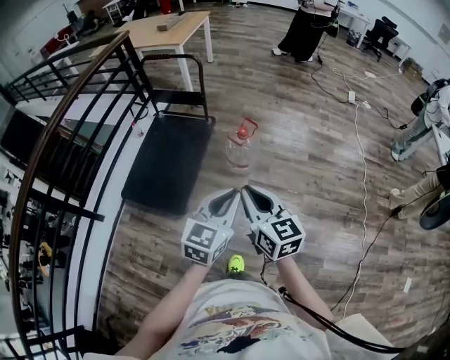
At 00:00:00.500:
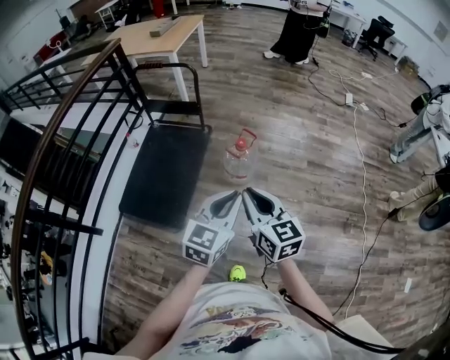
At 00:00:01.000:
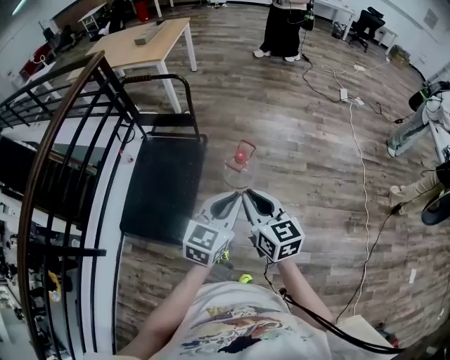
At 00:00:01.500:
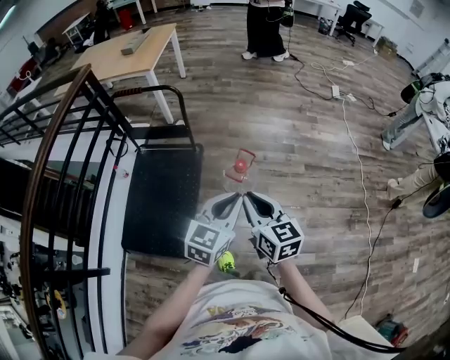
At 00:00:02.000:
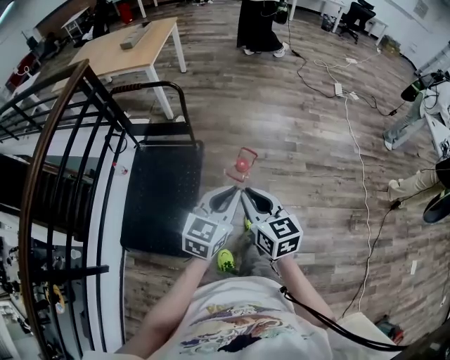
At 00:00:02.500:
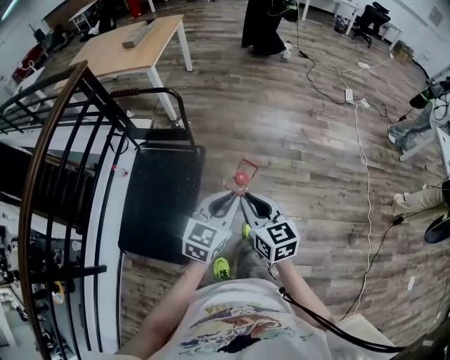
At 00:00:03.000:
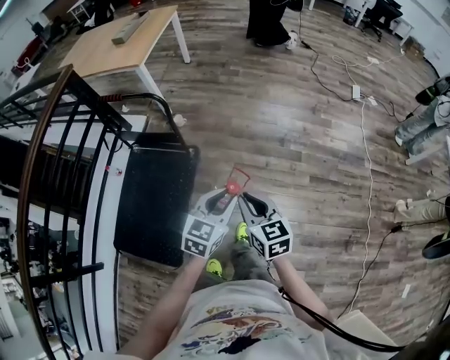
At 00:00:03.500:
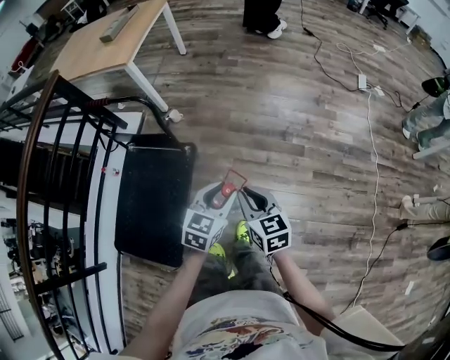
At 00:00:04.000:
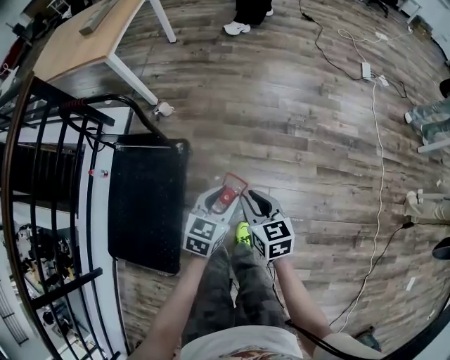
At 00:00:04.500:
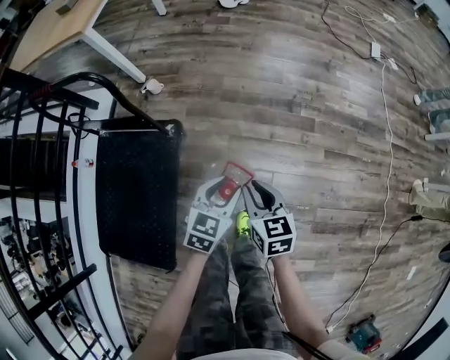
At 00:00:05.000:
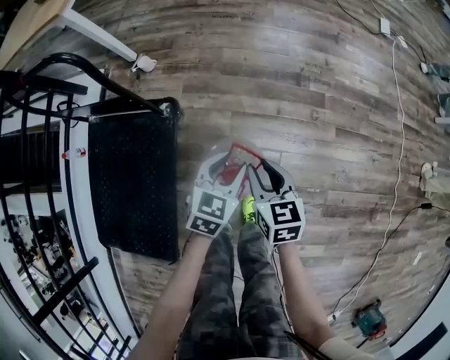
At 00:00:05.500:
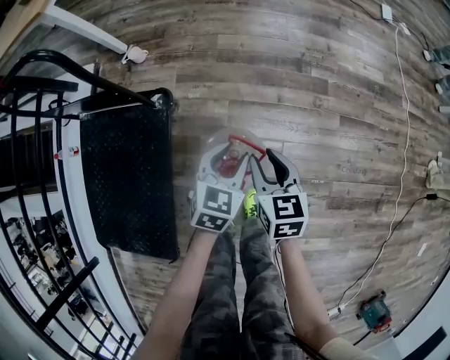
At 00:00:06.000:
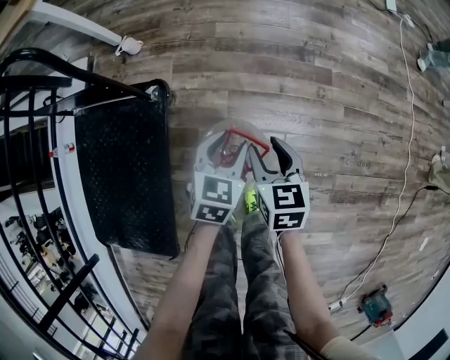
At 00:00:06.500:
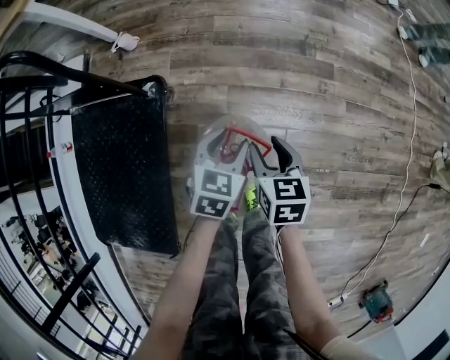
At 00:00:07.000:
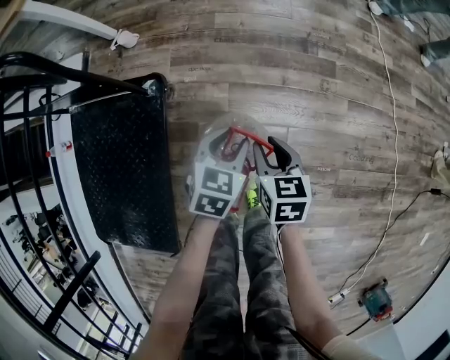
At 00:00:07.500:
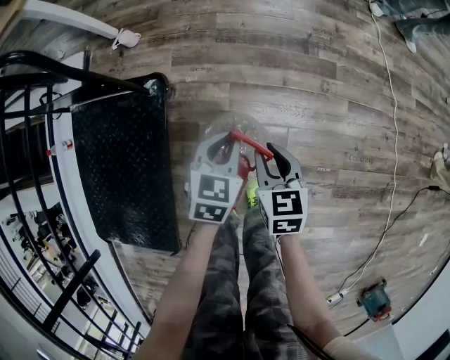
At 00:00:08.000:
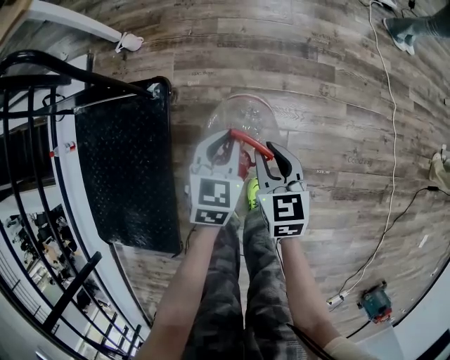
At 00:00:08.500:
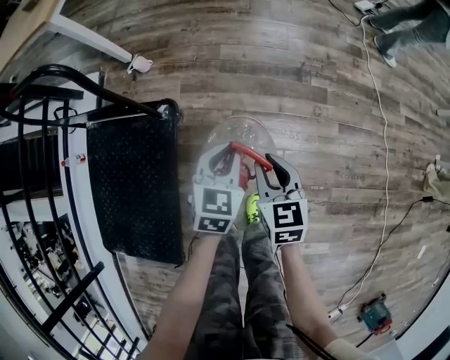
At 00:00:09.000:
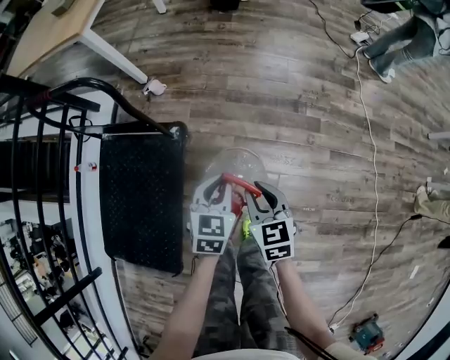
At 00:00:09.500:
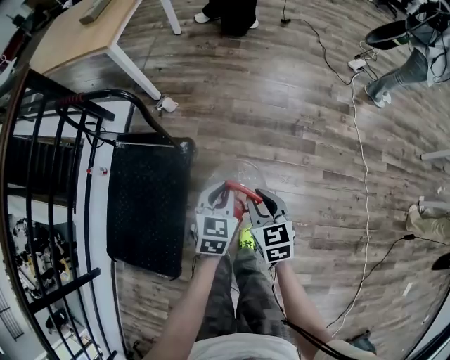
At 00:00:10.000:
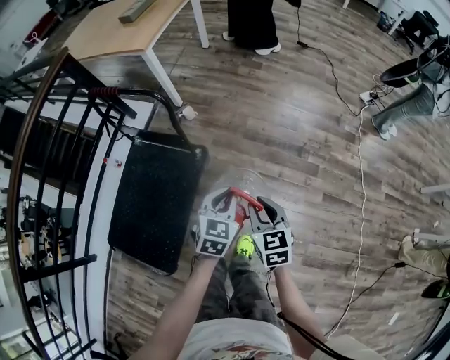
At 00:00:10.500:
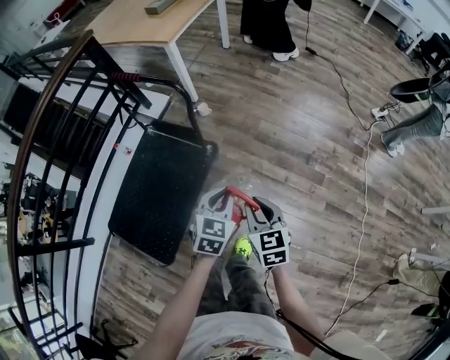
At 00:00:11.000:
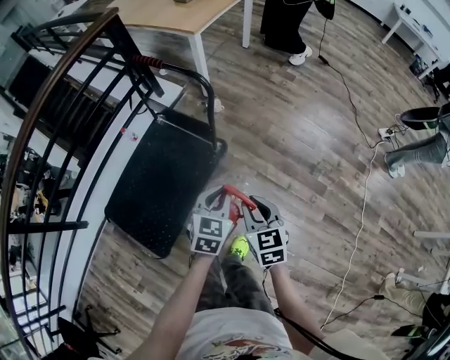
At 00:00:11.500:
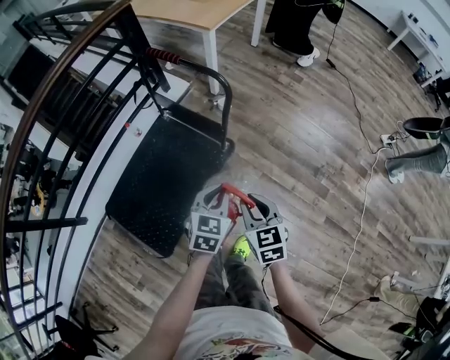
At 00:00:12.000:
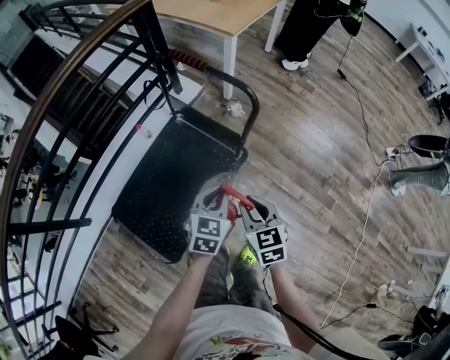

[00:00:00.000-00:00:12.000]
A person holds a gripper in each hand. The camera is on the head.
00:00:00.000 to 00:00:02.000: The grippers both shift forward by some 30 cm.
00:00:02.000 to 00:00:04.000: The two grippers go some 40 cm forward and downward. The left gripper opens up.
00:00:04.000 to 00:00:06.000: Both grippers travel together downward, about 30 cm. The right gripper opens.
00:00:06.000 to 00:00:08.000: The left gripper closes. Meanwhile the right gripper closes.
00:00:08.000 to 00:00:10.000: The two grippers go approximately 30 cm upward.
00:00:10.000 to 00:00:12.000: Both grippers travel together to the left, roughly 30 cm. The left gripper rotates approximately 20 degrees; the right gripper rotates some 20 degrees.

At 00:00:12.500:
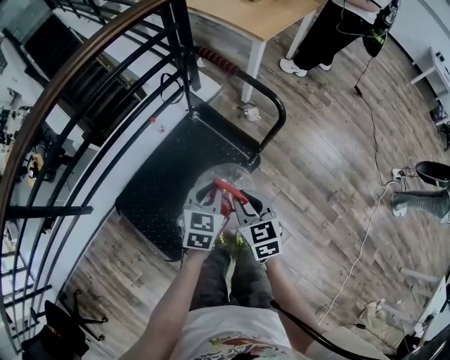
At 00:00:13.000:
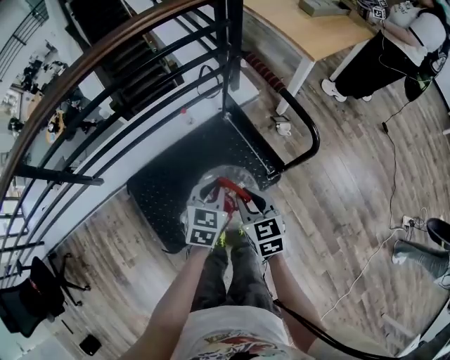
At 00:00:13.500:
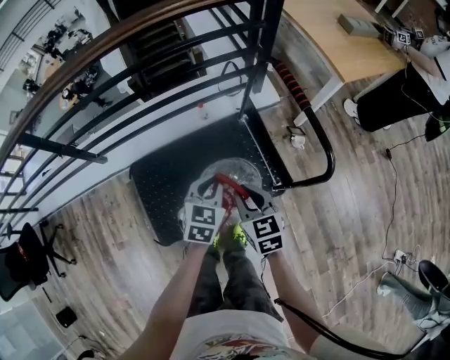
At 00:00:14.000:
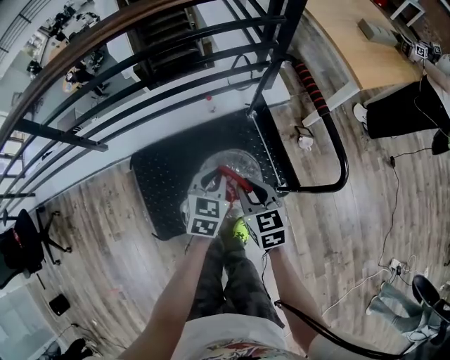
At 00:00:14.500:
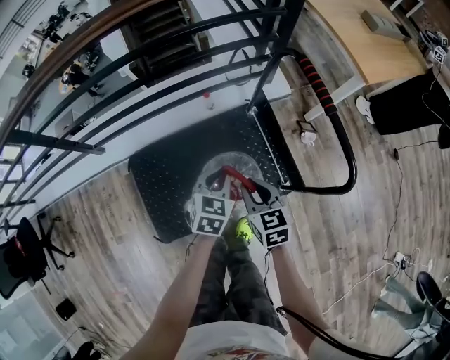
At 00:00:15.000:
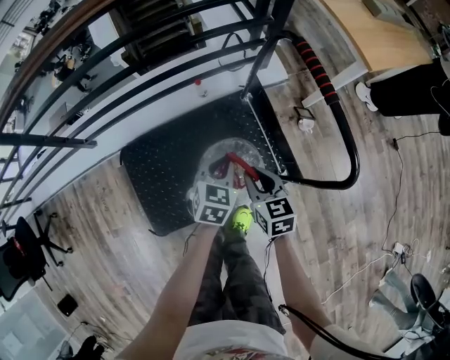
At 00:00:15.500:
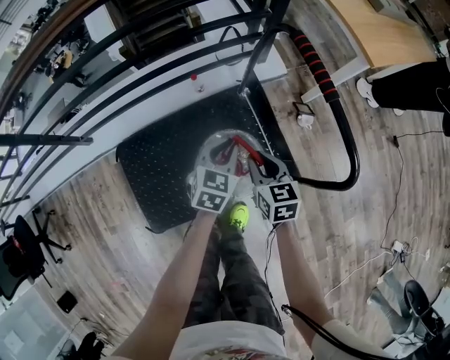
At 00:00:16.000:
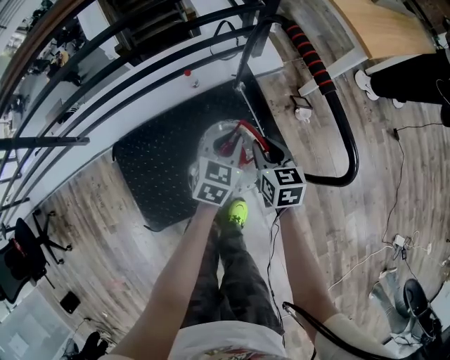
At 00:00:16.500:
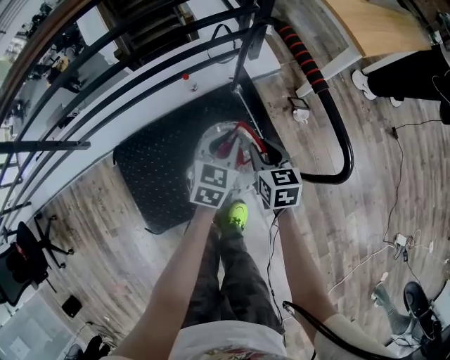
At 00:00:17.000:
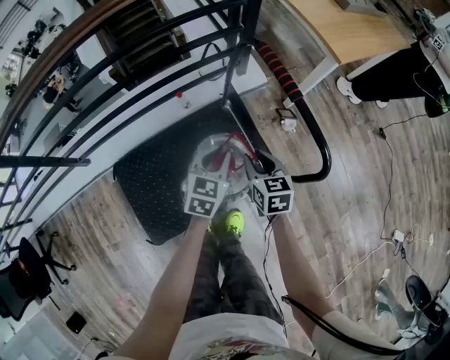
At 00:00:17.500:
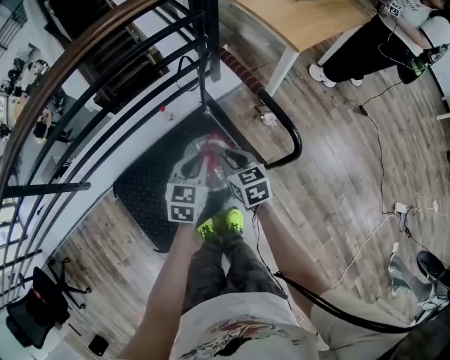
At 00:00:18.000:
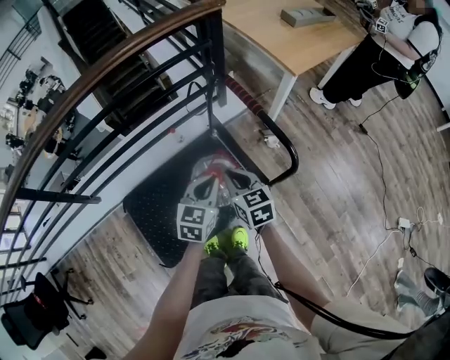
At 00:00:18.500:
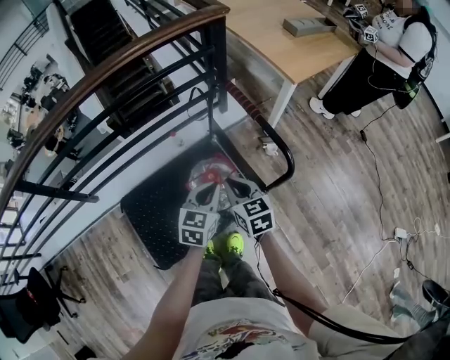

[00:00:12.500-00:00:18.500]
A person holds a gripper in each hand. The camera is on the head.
00:00:12.500 to 00:00:14.500: The left gripper shifts by about 20 cm, and rotates about 30 degrees. The right gripper changes place by roughly 20 cm, and rotates some 30 degrees.
00:00:14.500 to 00:00:16.500: The left gripper moves to the right and forward, roughly 10 cm. The right gripper travels to the right, forward and downward by approximately 15 cm.
00:00:16.500 to 00:00:18.500: The grippers both shift upward and backward by approximately 20 cm.

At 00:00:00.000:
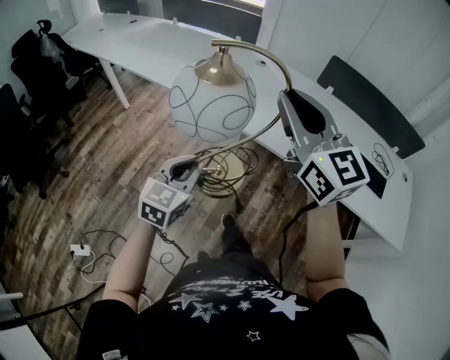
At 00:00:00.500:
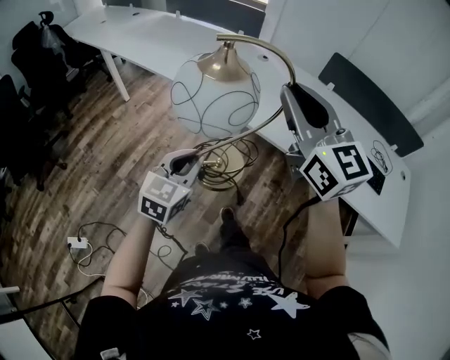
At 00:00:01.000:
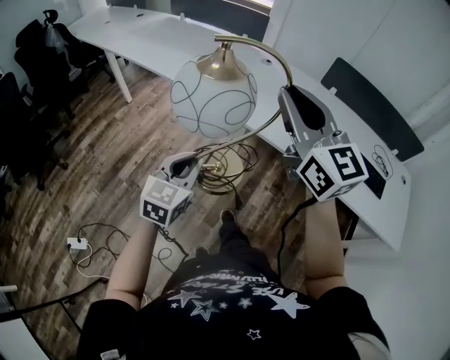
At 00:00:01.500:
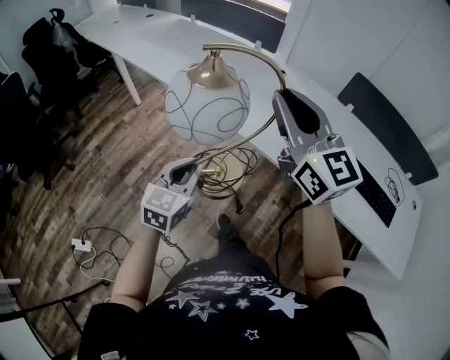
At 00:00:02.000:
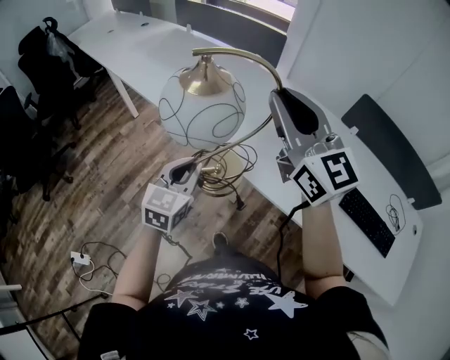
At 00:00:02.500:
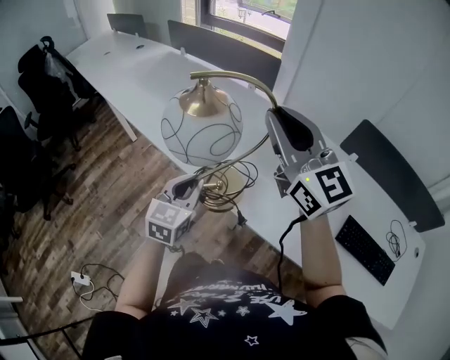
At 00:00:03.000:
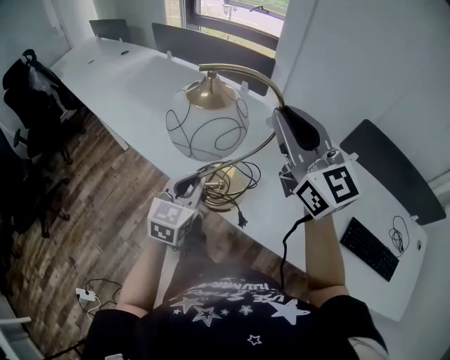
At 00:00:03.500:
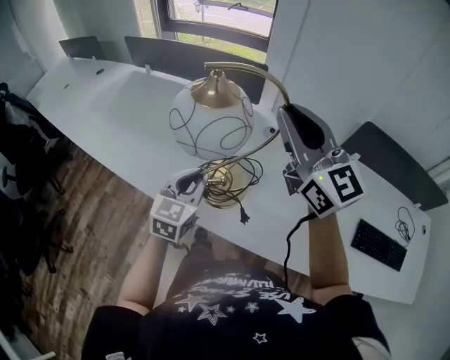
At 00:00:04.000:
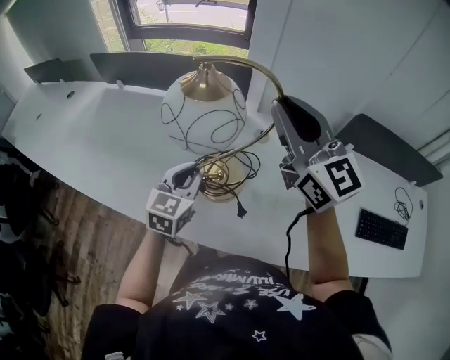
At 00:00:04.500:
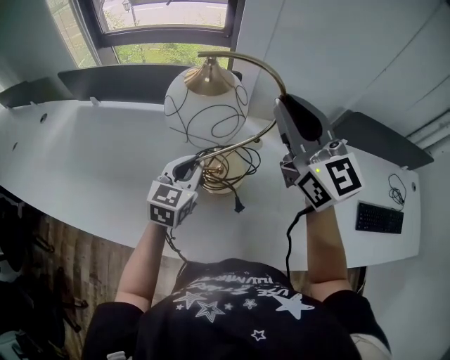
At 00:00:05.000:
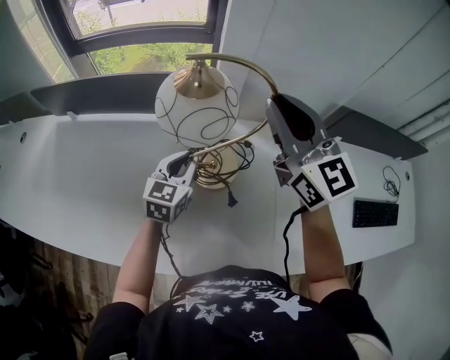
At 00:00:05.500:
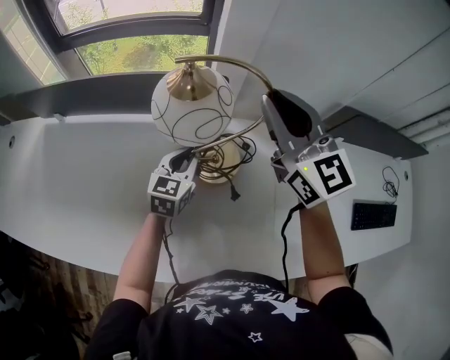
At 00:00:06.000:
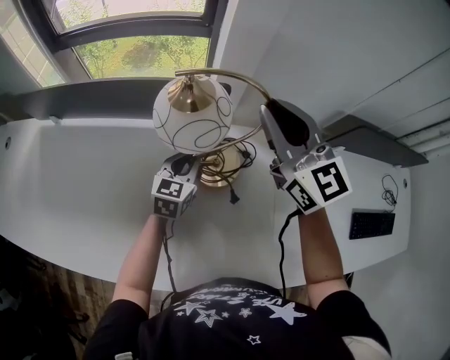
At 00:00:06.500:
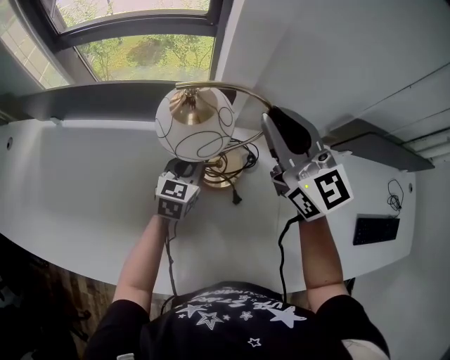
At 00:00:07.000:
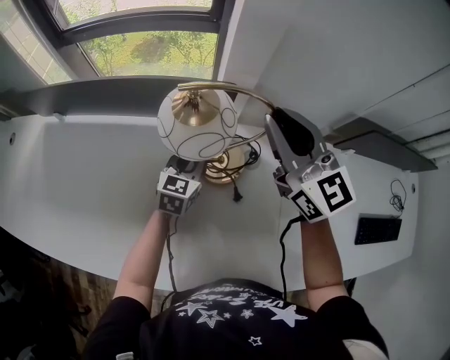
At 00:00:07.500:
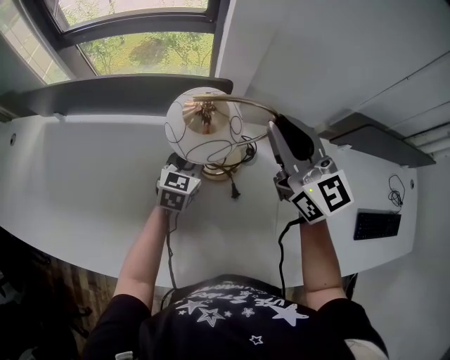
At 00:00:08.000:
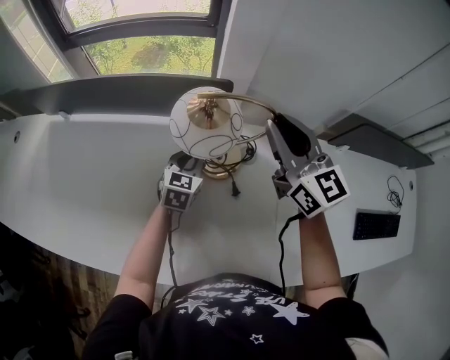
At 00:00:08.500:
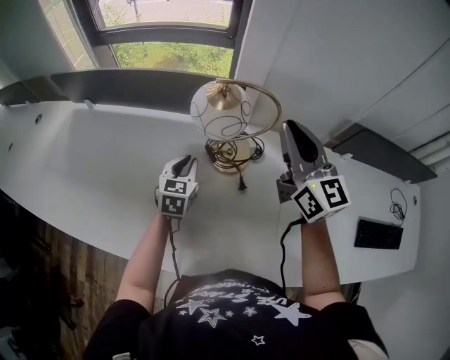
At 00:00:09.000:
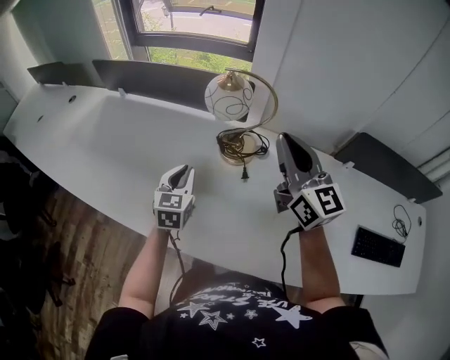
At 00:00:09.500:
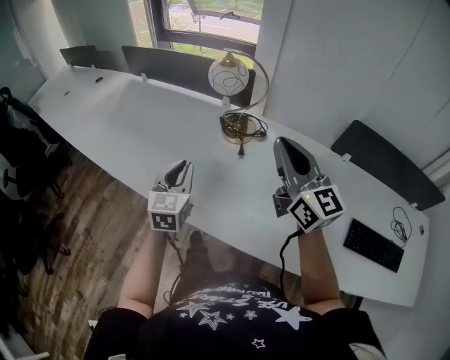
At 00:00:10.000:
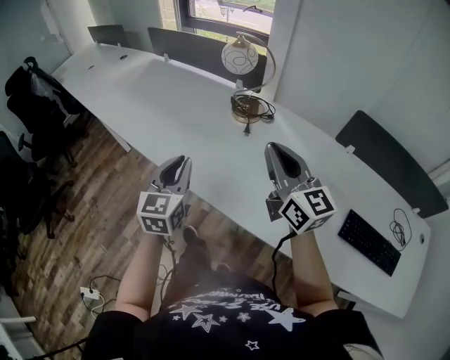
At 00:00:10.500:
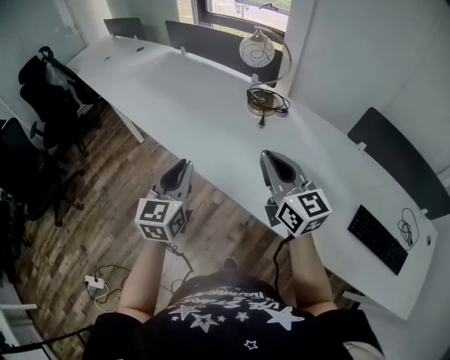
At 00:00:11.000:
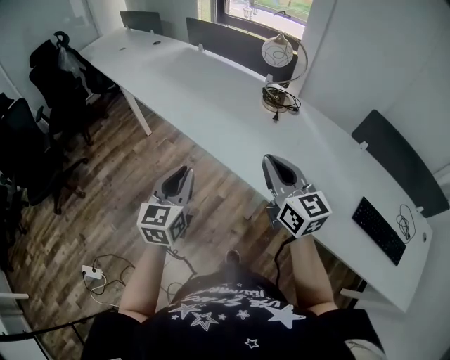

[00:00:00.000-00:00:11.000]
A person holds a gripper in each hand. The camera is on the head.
00:00:00.000 to 00:00:02.000: Both grippers move forward, some 25 cm.
00:00:02.000 to 00:00:03.500: Both grippers move forward, some 25 cm.
00:00:03.500 to 00:00:05.500: Both grippers travel together forward, about 30 cm. The right gripper changes its angle by roughly 20 degrees; the left gripper turns by roughly 20 degrees.
00:00:05.500 to 00:00:07.500: The grippers both shift downward by approximately 5 cm.
00:00:07.500 to 00:00:09.000: The left gripper heads backward, upward and to the left, covering roughly 25 cm, and changes its angle by roughly 30 degrees. The right gripper shifts some 15 cm backward.
00:00:09.000 to 00:00:11.000: The right gripper moves backward and to the left, roughly 35 cm, and changes its angle by roughly 30 degrees; the left gripper shifts roughly 40 cm backward, and rotates about 20 degrees.
